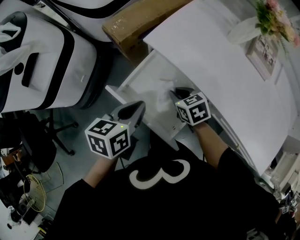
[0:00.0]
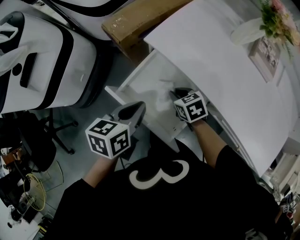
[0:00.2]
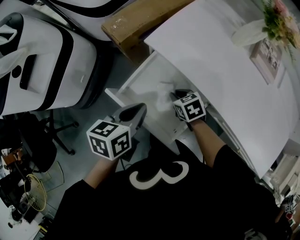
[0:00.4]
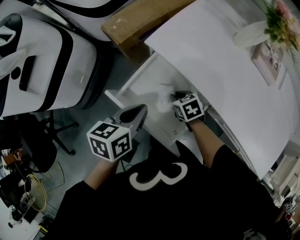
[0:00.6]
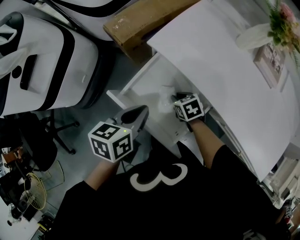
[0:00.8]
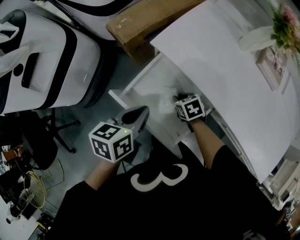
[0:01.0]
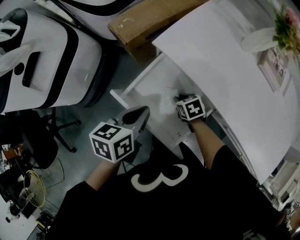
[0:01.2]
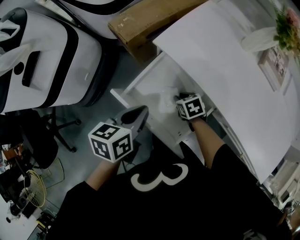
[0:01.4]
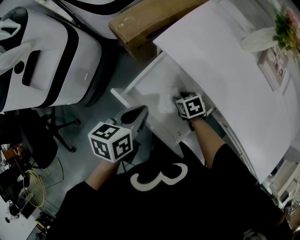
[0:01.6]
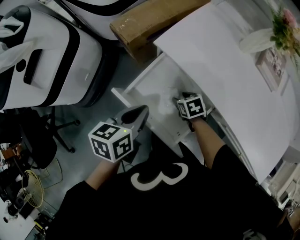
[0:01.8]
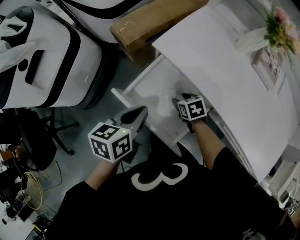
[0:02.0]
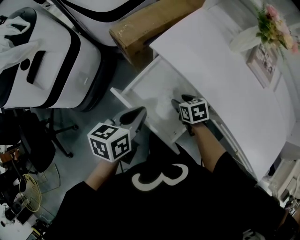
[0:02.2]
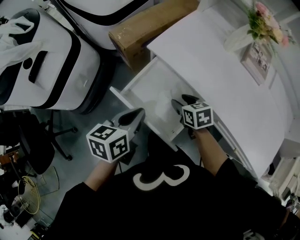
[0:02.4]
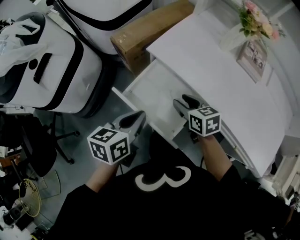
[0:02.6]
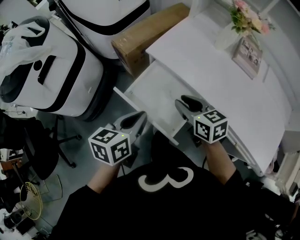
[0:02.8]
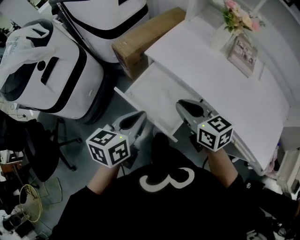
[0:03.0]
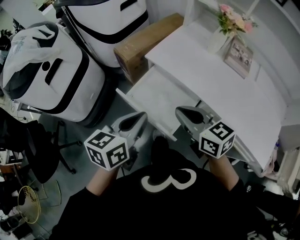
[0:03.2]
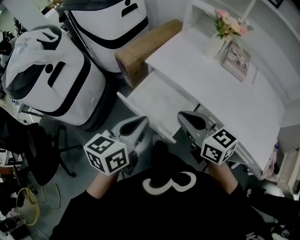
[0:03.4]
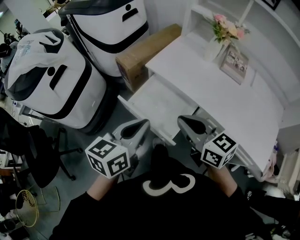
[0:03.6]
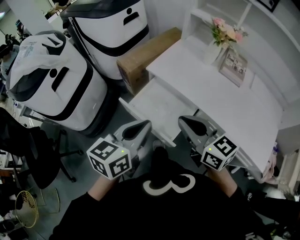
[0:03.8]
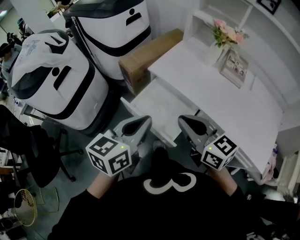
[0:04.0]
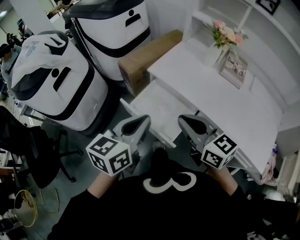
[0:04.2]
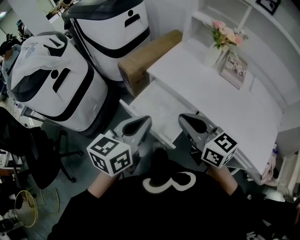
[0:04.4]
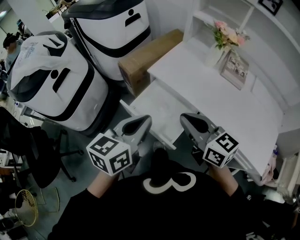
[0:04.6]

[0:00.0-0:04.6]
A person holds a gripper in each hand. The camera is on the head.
0:00.0 to 0:01.6: The right gripper goes approximately 10 cm downward, and opens its fingers.
0:01.6 to 0:03.0: The left gripper heads upward and backward, covering about 15 cm. Meanwhile the right gripper moves upward, approximately 30 cm, tilts its fingers approximately 40 degrees upward, and closes up.
0:03.0 to 0:04.6: The right gripper heads upward and backward, covering roughly 10 cm, while the left gripper heads upward, covering approximately 10 cm.

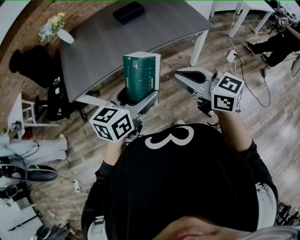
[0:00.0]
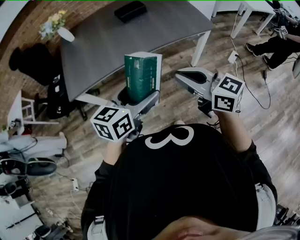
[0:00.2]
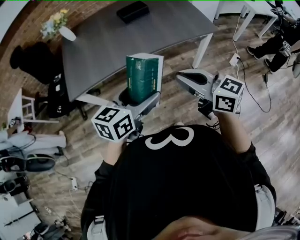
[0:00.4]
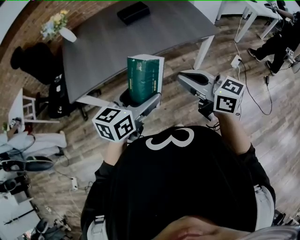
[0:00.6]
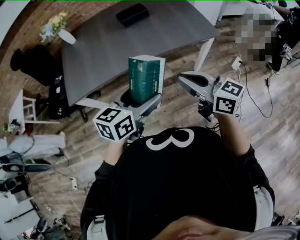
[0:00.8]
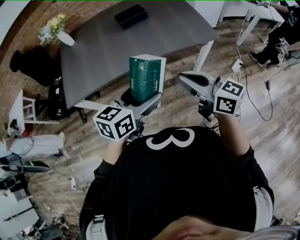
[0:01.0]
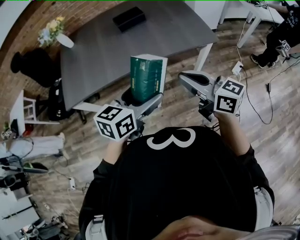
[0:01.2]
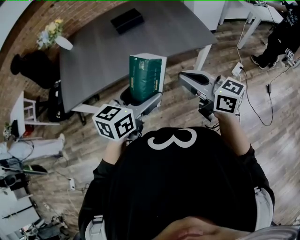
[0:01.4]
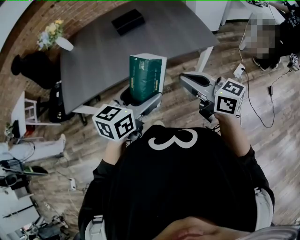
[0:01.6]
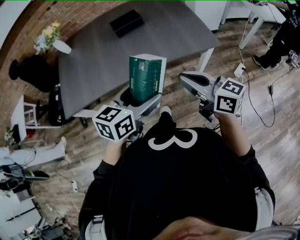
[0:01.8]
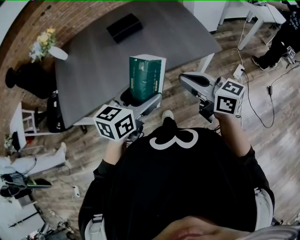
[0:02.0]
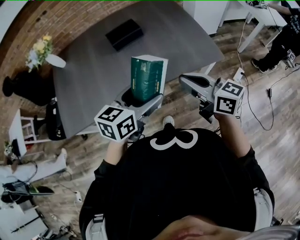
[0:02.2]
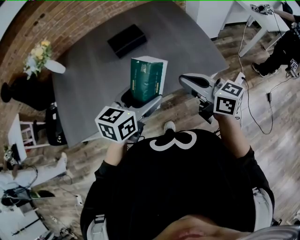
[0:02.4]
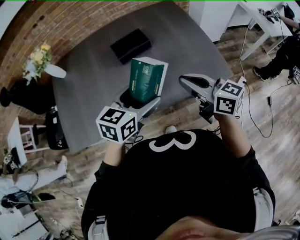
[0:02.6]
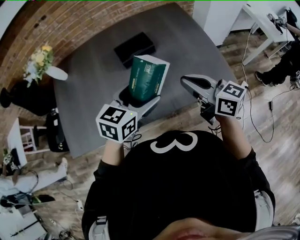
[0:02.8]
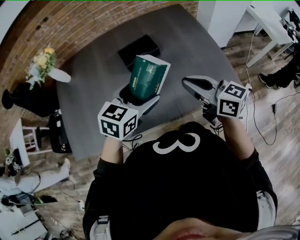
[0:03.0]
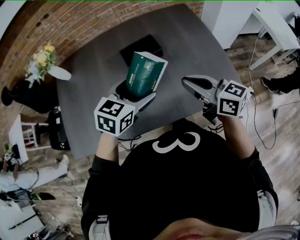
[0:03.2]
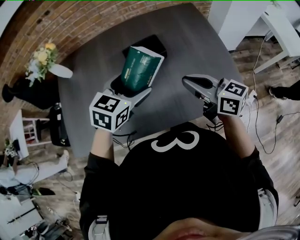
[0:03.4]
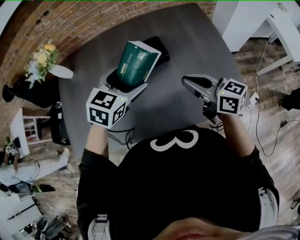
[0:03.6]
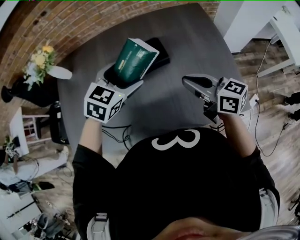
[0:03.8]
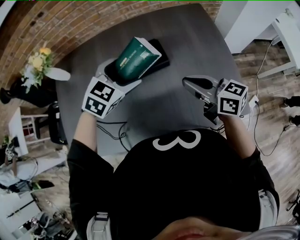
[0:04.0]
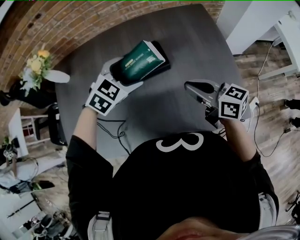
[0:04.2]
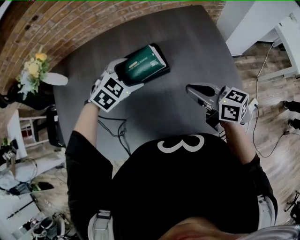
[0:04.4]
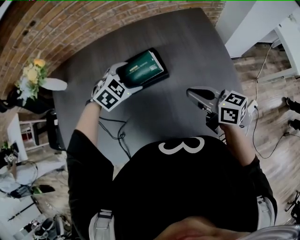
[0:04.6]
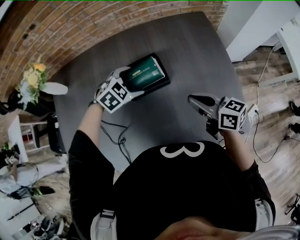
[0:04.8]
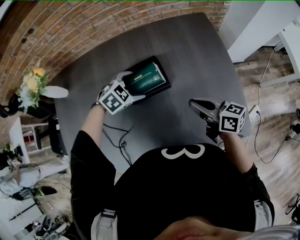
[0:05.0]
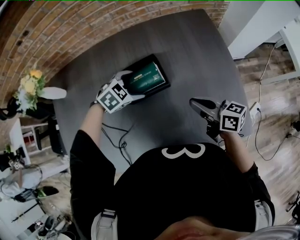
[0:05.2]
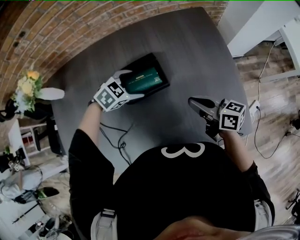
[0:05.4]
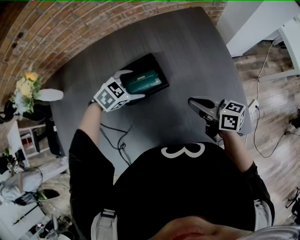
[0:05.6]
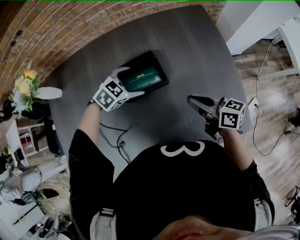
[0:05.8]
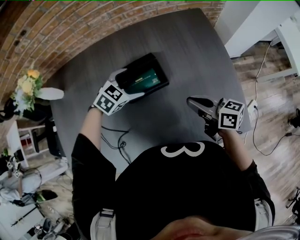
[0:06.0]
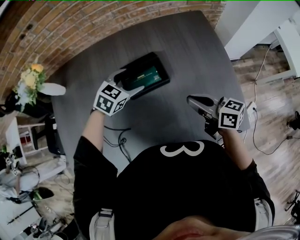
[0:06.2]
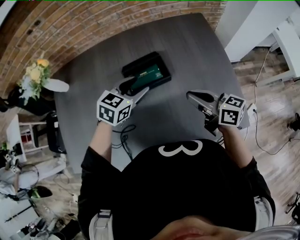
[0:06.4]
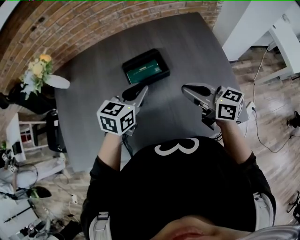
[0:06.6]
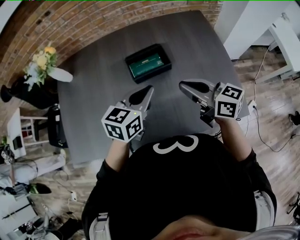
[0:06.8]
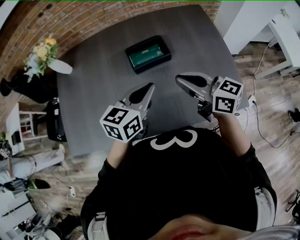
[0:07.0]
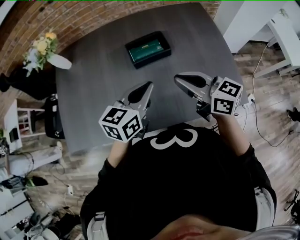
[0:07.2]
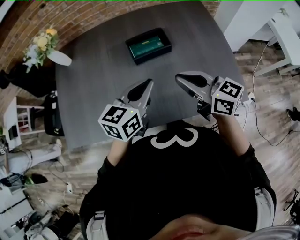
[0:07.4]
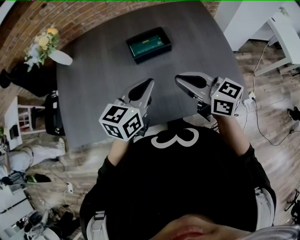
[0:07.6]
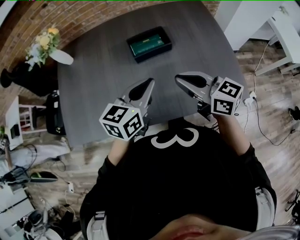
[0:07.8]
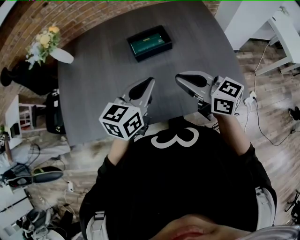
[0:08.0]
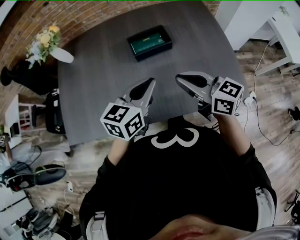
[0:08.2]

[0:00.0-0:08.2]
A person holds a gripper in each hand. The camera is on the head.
0:00.0 to 0:01.6: The right gripper heads forward and to the right, covering approximately 15 cm, while the left gripper heads to the right and forward, covering roughly 15 cm.
0:01.6 to 0:03.2: The grippers both shift forward by roughly 35 cm.
0:03.2 to 0:05.0: The grippers both shift forward and downward by roughly 25 cm. The left gripper turns by some 40 degrees.
0:05.0 to 0:06.6: The right gripper is displaced upward by roughly 5 cm; the left gripper moves upward and backward, approximately 15 cm, swivels some 50 degrees, and closes its fingers.
0:06.6 to 0:08.2: The left gripper is displaced backward by roughly 15 cm. Meanwhile the right gripper shifts some 15 cm backward and to the left.

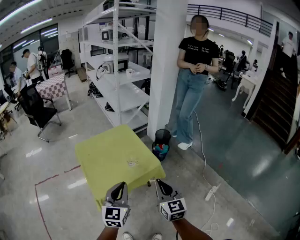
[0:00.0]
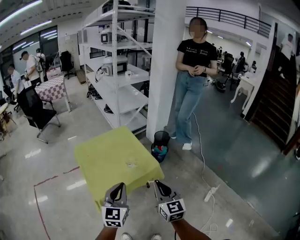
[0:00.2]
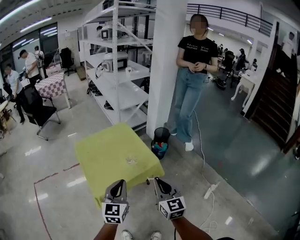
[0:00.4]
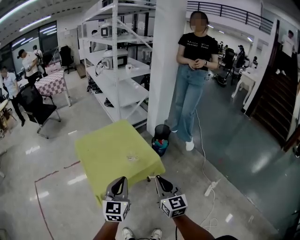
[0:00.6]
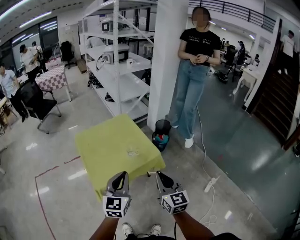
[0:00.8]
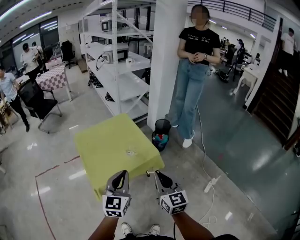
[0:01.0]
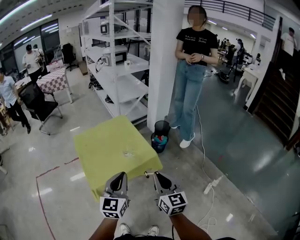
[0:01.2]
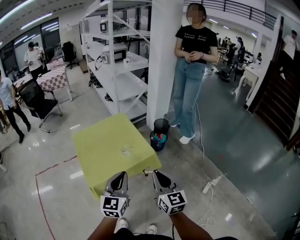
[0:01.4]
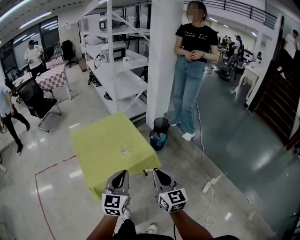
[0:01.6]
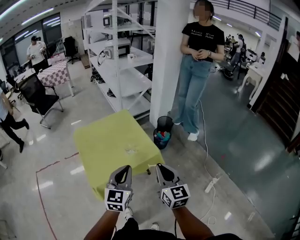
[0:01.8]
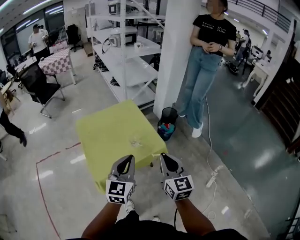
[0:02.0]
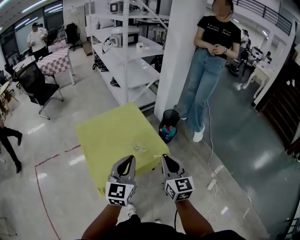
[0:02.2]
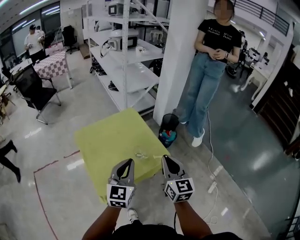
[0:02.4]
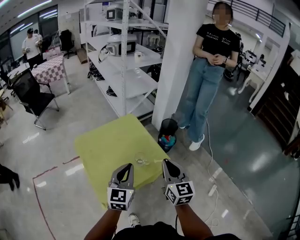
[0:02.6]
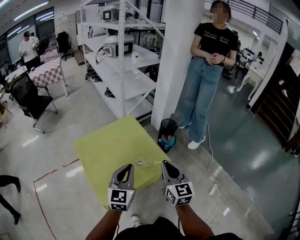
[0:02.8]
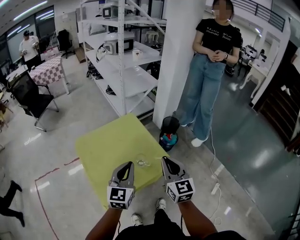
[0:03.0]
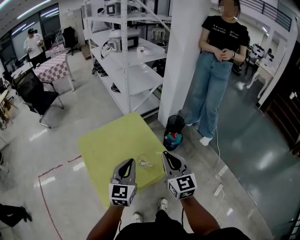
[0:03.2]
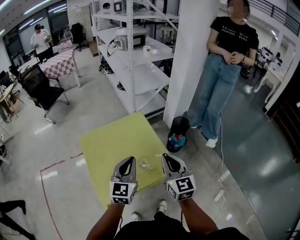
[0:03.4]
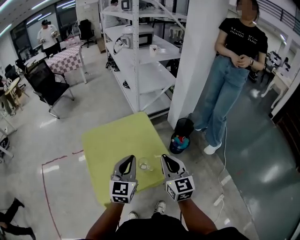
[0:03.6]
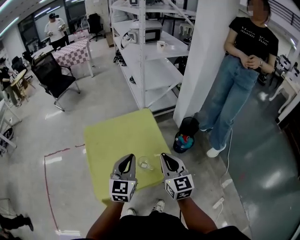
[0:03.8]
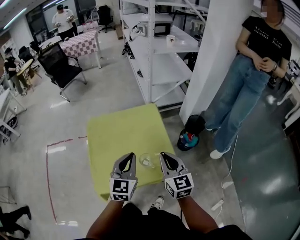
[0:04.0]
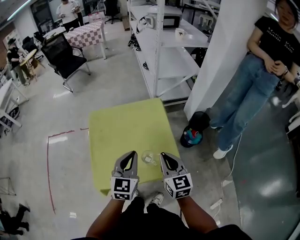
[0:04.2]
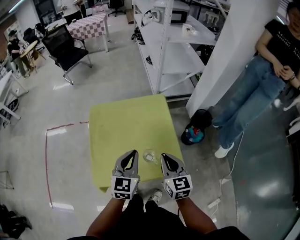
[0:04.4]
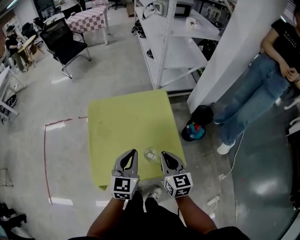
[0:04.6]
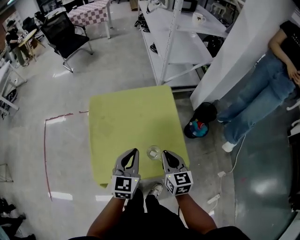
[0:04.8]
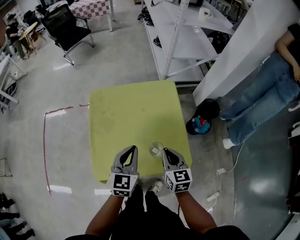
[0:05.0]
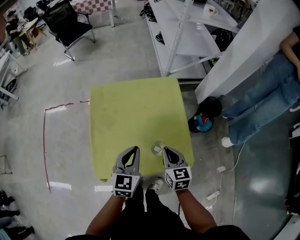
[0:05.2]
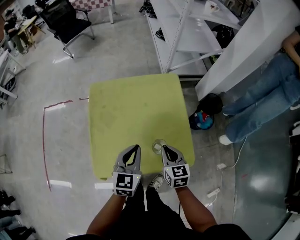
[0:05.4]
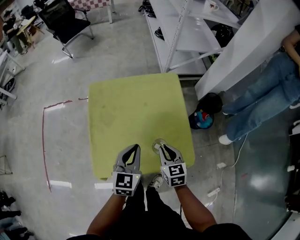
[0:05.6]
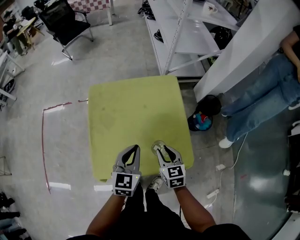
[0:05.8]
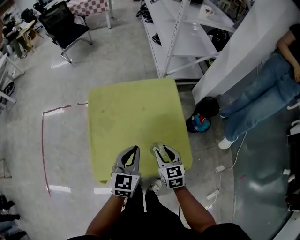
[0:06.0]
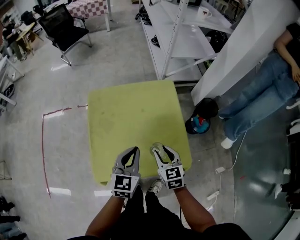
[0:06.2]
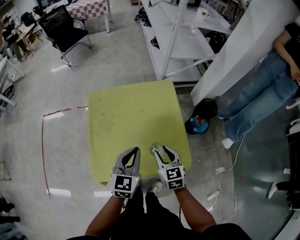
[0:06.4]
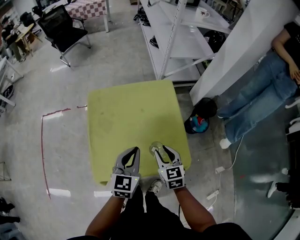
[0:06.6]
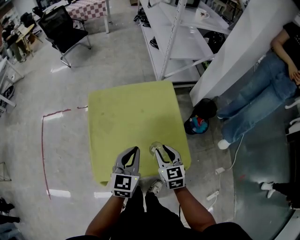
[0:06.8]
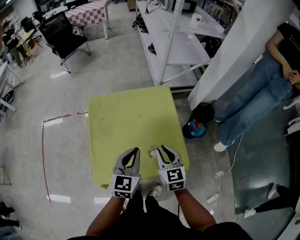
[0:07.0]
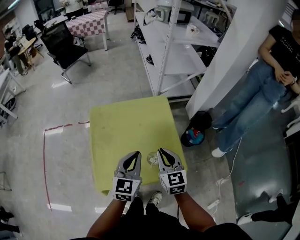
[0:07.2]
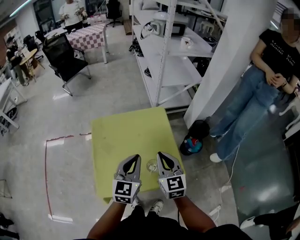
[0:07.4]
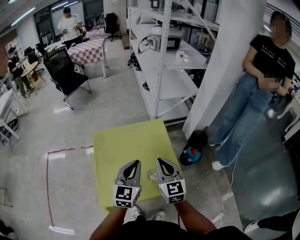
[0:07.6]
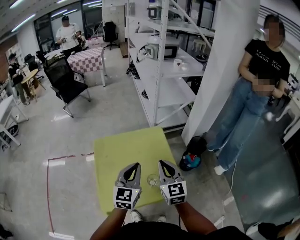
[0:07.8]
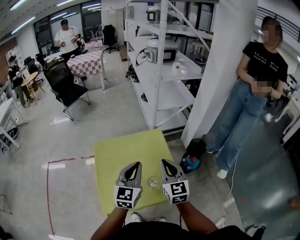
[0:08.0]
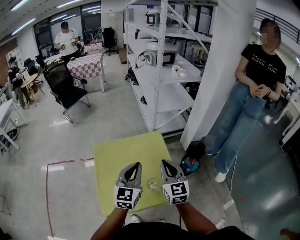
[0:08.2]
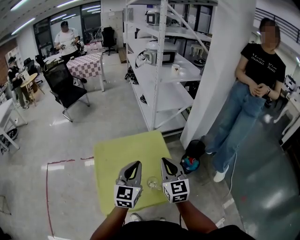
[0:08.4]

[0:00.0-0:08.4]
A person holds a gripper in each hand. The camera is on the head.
0:00.0 to 0:01.4: Both grippers travel together to the right, approximately 5 cm.
0:01.4 to 0:02.8: Both grippers travel together forward and to the left, some 20 cm.
0:02.8 to 0:04.2: Both grippers move forward and downward, about 15 cm. The right gripper swivels roughly 30 degrees; the left gripper turns by some 20 degrees.
0:04.2 to 0:05.6: The left gripper goes approximately 10 cm downward and to the left. Meanwhile the right gripper goes approximately 20 cm downward, and swivels approximately 20 degrees.
0:05.6 to 0:07.0: The left gripper changes place by roughly 5 cm. Meanwhile the right gripper is displaced upward by approximately 10 cm.
0:07.0 to 0:08.4: The grippers both shift upward by some 15 cm. The right gripper turns by approximately 20 degrees.

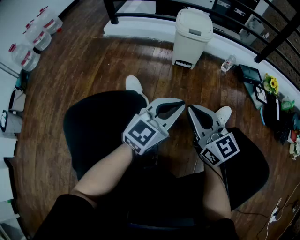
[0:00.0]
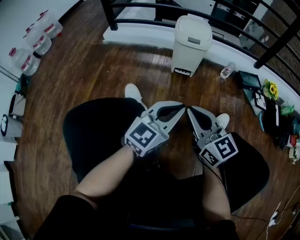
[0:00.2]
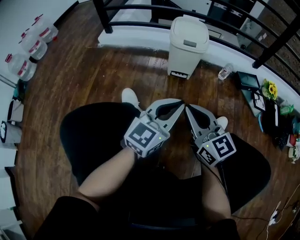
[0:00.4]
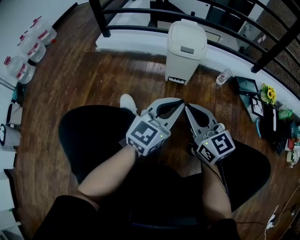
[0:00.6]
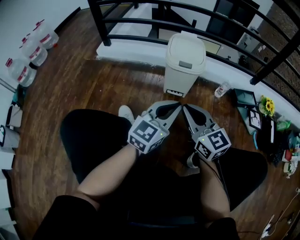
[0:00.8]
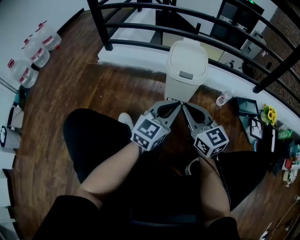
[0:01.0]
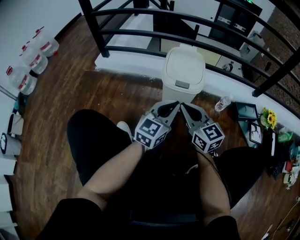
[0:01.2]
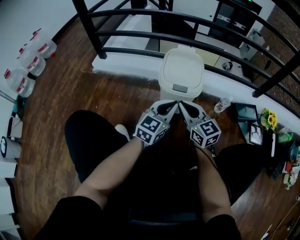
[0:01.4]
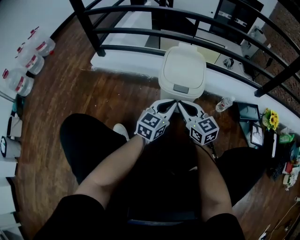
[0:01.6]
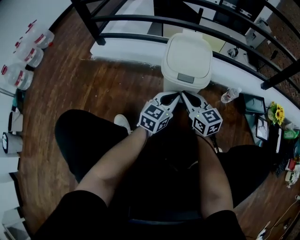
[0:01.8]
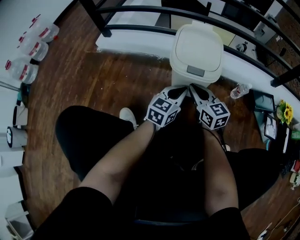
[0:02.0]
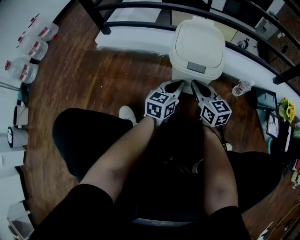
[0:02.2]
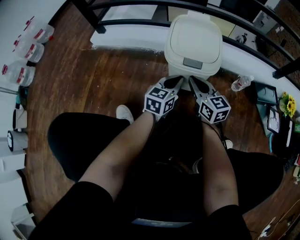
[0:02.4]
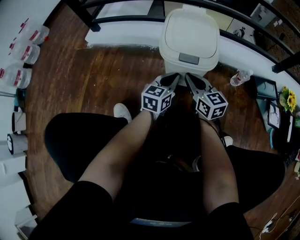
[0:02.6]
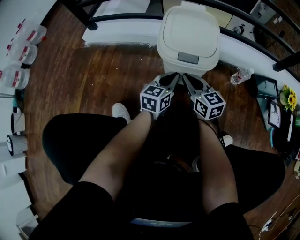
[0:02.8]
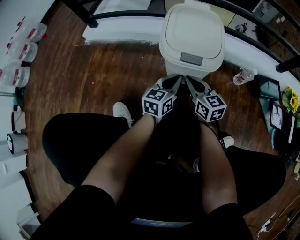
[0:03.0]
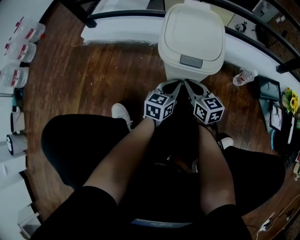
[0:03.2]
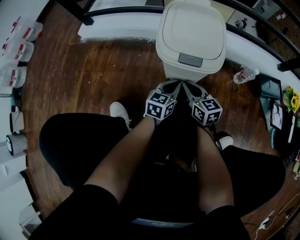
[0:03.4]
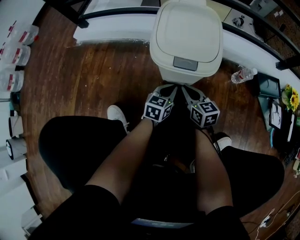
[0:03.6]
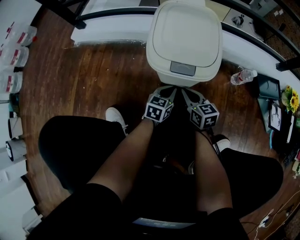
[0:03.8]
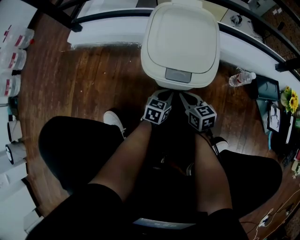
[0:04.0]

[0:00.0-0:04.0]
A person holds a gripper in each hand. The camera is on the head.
0:00.0 to 0:01.4: The pair of grippers is taken forward, roughly 40 cm.
0:01.4 to 0:02.6: Both grippers travel together downward and forward, roughly 20 cm.
0:02.6 to 0:04.0: The two grippers go approximately 15 cm downward.
